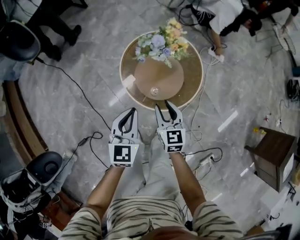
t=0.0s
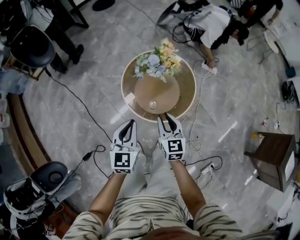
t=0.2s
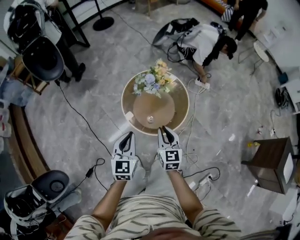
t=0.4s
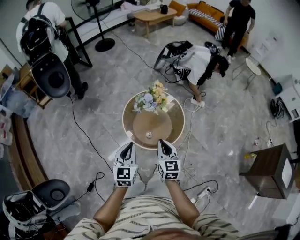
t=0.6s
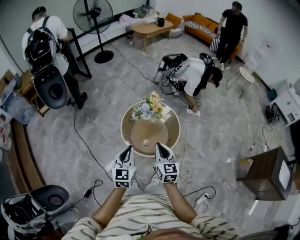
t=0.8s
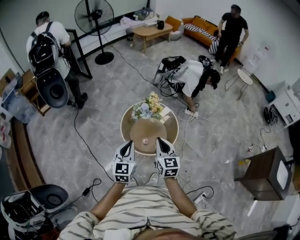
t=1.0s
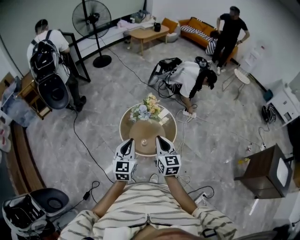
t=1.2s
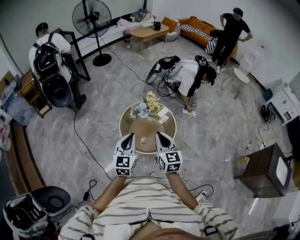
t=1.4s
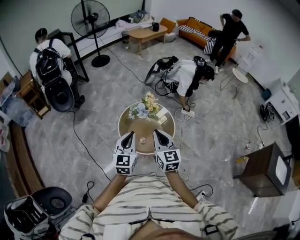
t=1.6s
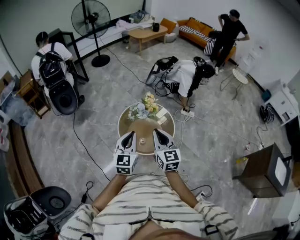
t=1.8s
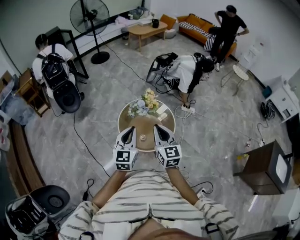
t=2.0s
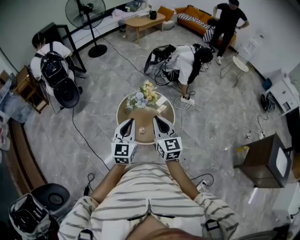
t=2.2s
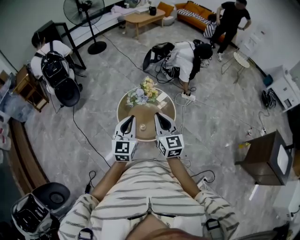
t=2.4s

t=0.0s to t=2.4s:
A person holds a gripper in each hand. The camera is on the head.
t=0.0s to t=1.2s: Both grippers travel together upward, roughly 25 cm. The right gripper closes its fingers.
t=1.2s to t=2.4s: The grippers stay close to where they were, moving slightly.

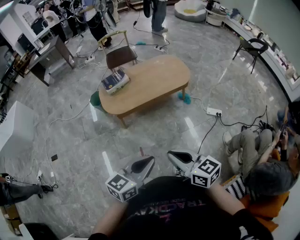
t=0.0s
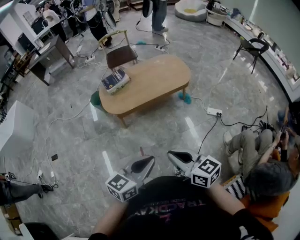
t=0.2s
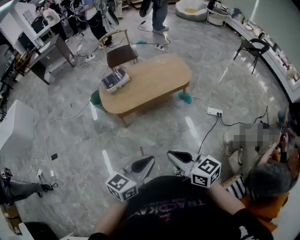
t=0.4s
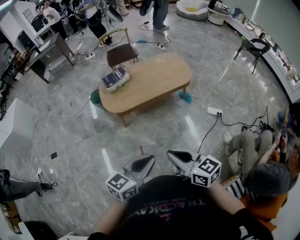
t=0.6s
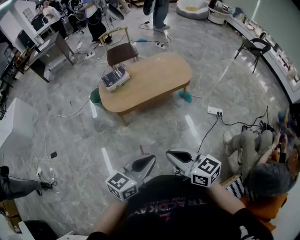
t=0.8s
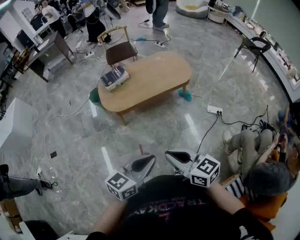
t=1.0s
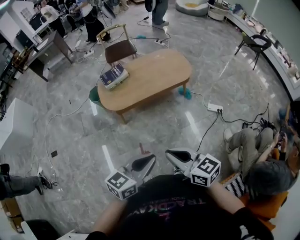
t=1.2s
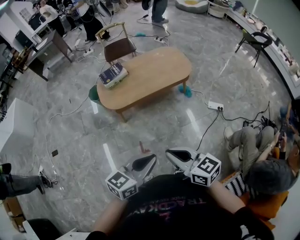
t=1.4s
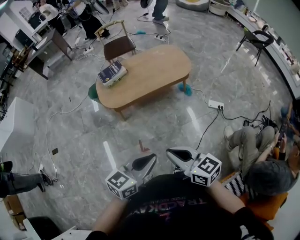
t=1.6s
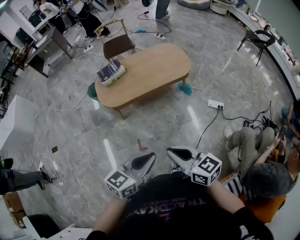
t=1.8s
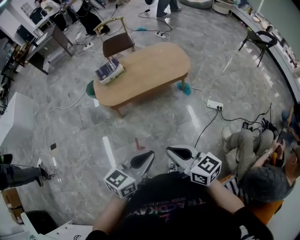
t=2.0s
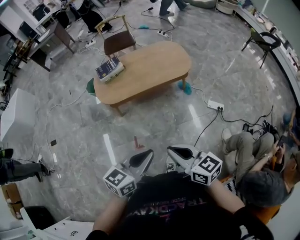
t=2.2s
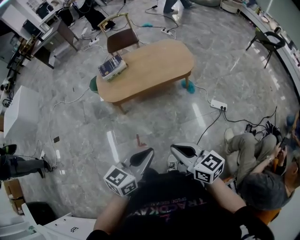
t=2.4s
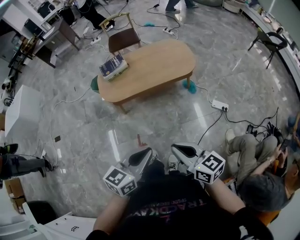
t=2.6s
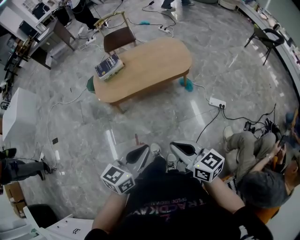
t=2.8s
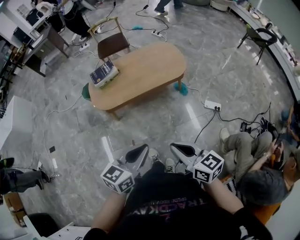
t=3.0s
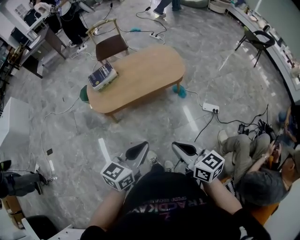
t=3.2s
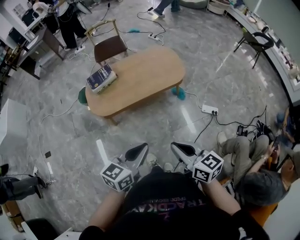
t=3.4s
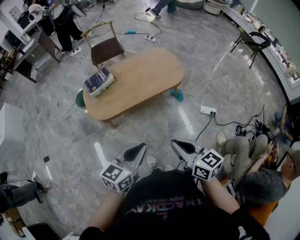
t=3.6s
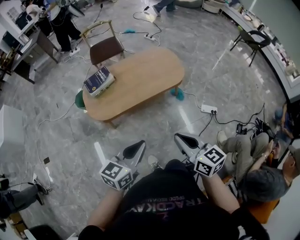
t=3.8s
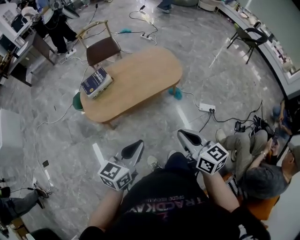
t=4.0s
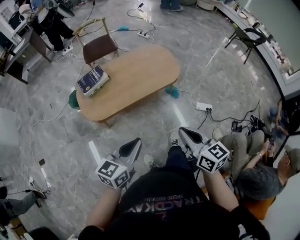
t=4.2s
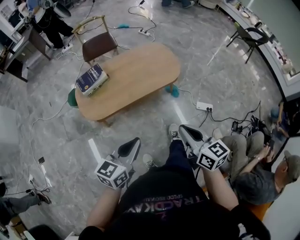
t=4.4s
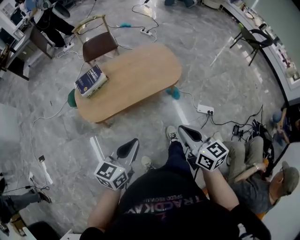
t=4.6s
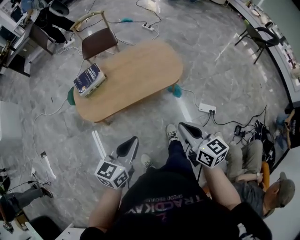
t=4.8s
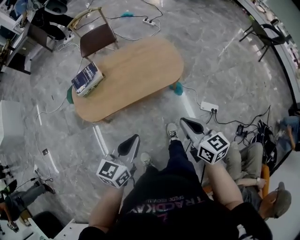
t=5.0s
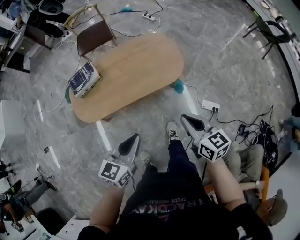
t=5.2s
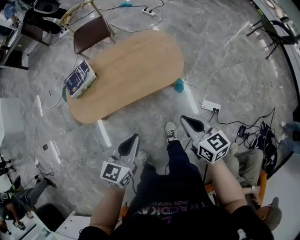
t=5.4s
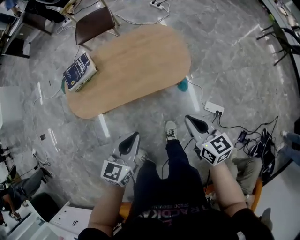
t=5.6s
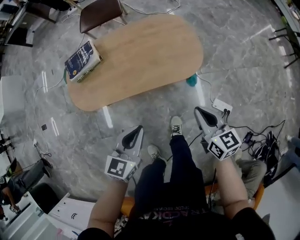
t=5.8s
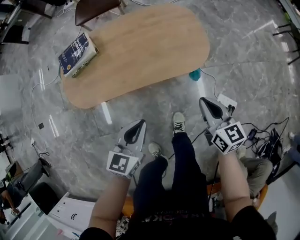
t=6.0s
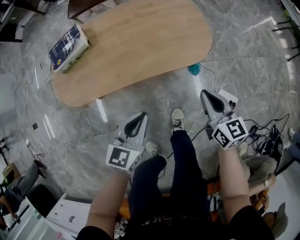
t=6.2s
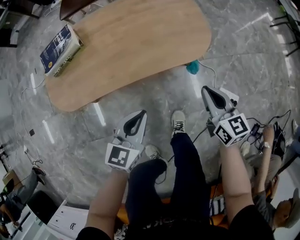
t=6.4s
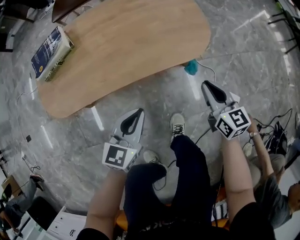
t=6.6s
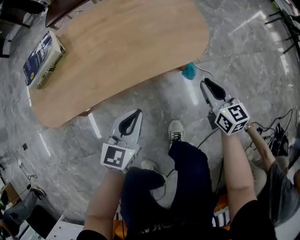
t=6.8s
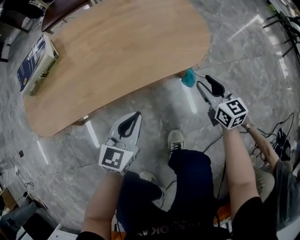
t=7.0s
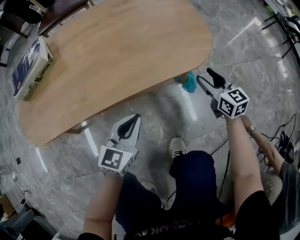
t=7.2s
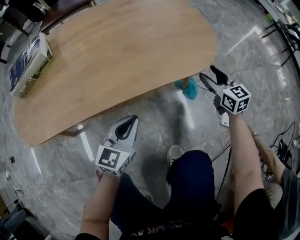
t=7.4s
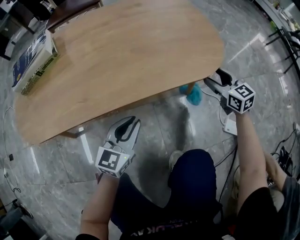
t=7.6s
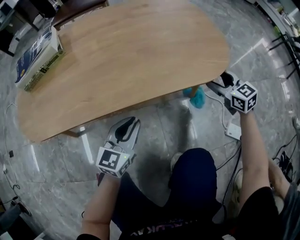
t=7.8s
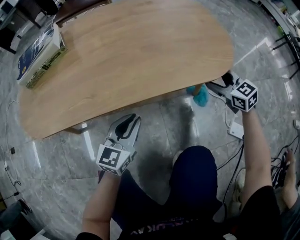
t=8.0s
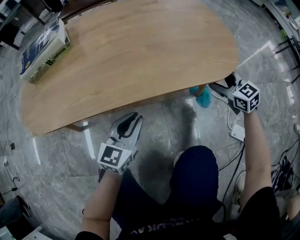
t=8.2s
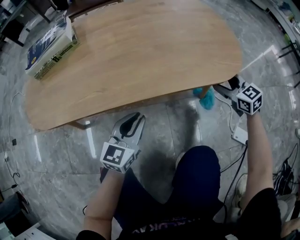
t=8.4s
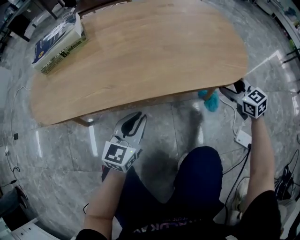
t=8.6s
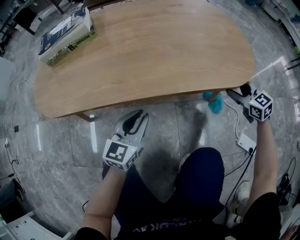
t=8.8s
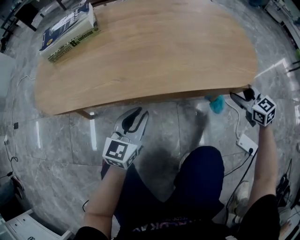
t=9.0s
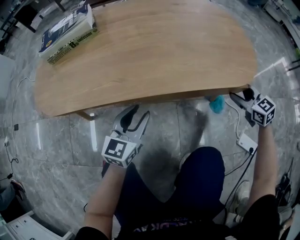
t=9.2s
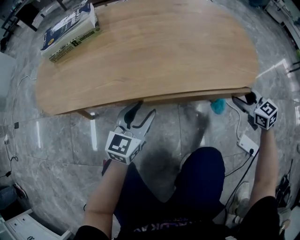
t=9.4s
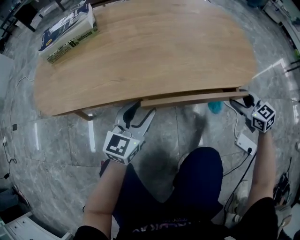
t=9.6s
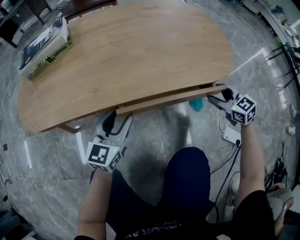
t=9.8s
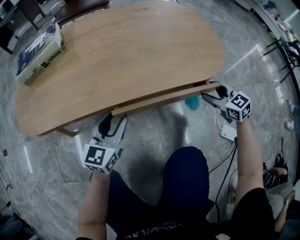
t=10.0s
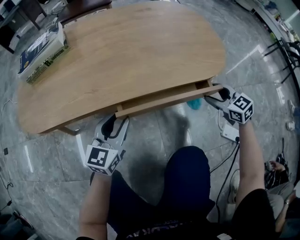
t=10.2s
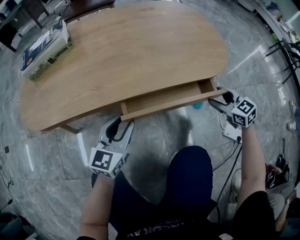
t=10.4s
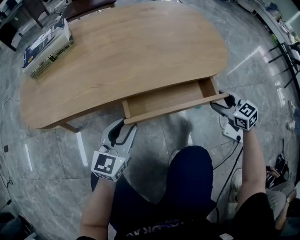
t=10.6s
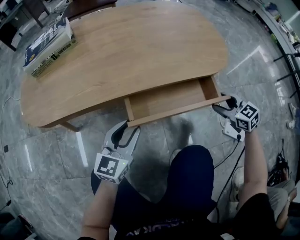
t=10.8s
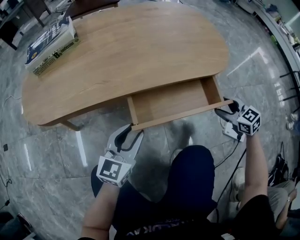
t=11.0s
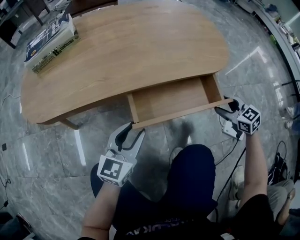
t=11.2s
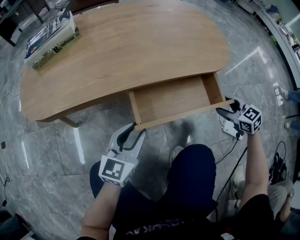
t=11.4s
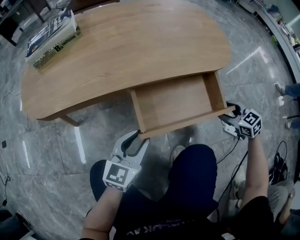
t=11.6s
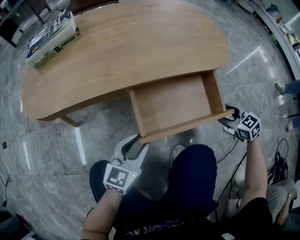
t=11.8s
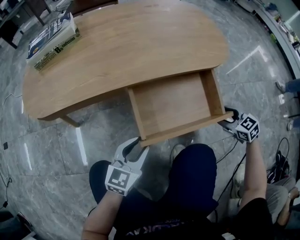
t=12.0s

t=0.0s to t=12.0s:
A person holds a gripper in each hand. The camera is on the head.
t=0.0s to t=1.6s: The left gripper moves roughly 5 cm.
t=1.6s to t=3.0s: The left gripper shifts approximately 10 cm forward and to the right. Meanwhile the right gripper is displaced to the right and forward by approximately 15 cm.
t=3.0s to t=4.4s: The right gripper goes some 15 cm forward, while the left gripper goes some 15 cm forward and to the left.
t=4.4s to t=6.0s: The left gripper is displaced downward, forward and to the right by roughly 35 cm, and swivels roughly 20 degrees, while the right gripper shifts some 40 cm forward, downward and to the right.
t=6.0s to t=7.6s: The left gripper travels downward by roughly 40 cm. Meanwhile the right gripper moves downward and forward, about 40 cm, swivels some 20 degrees, and opens.
t=7.6s to t=9.0s: The left gripper travels to the left by some 10 cm.
t=9.0s to t=10.4s: The right gripper goes roughly 5 cm backward.
t=10.4s to t=12.0s: The two grippers go about 15 cm backward.

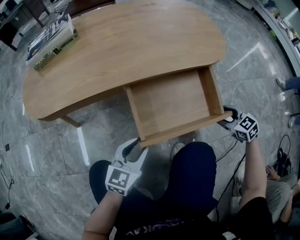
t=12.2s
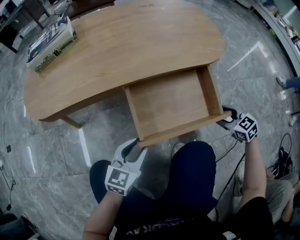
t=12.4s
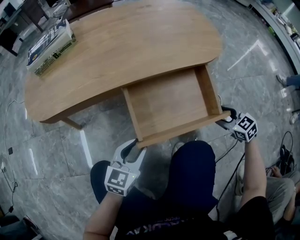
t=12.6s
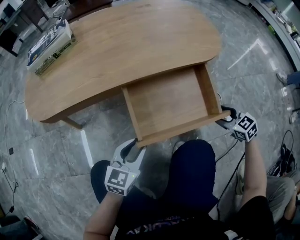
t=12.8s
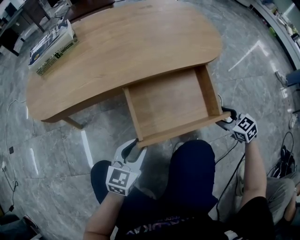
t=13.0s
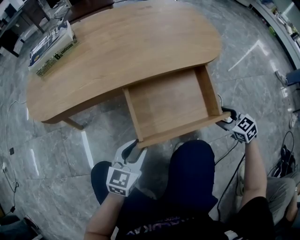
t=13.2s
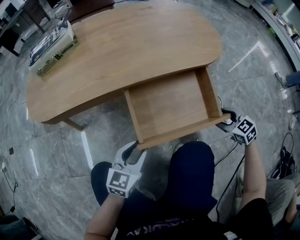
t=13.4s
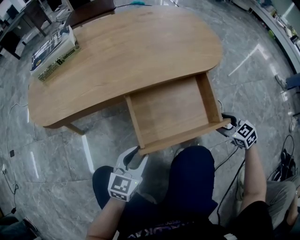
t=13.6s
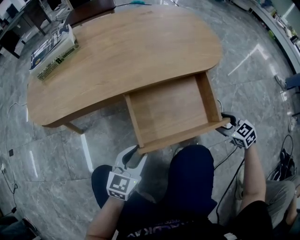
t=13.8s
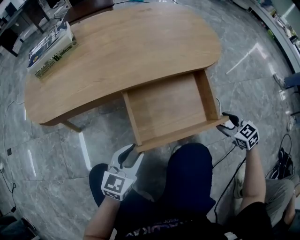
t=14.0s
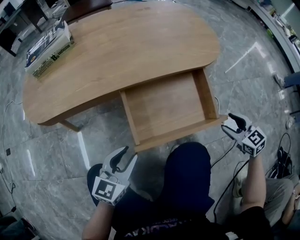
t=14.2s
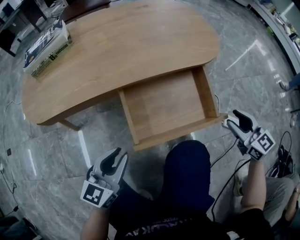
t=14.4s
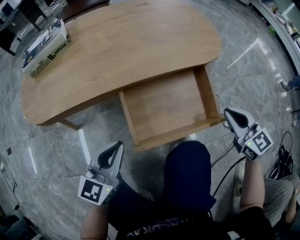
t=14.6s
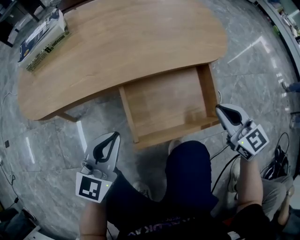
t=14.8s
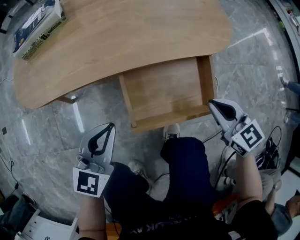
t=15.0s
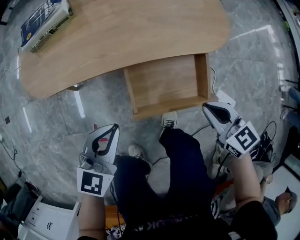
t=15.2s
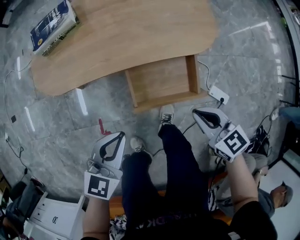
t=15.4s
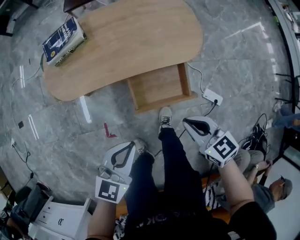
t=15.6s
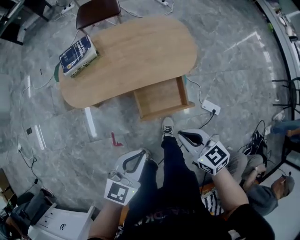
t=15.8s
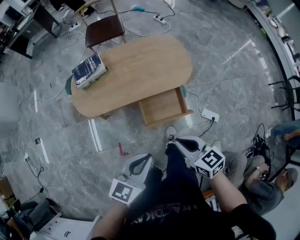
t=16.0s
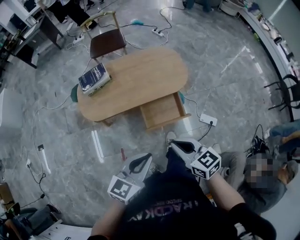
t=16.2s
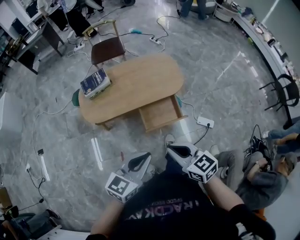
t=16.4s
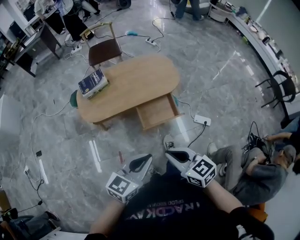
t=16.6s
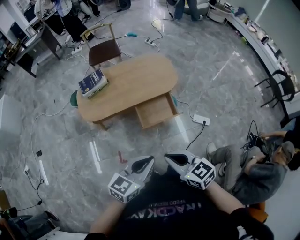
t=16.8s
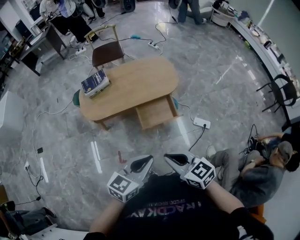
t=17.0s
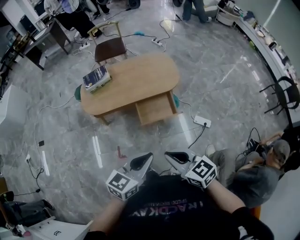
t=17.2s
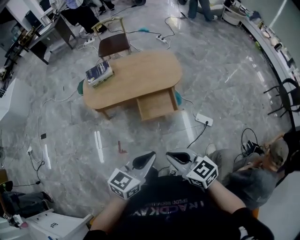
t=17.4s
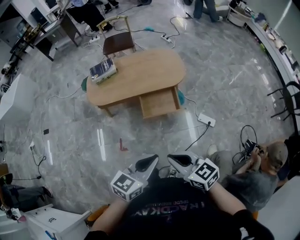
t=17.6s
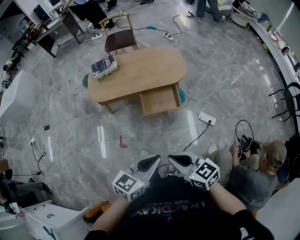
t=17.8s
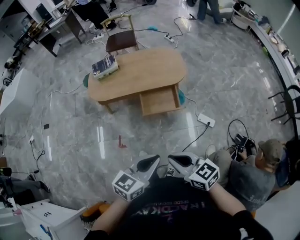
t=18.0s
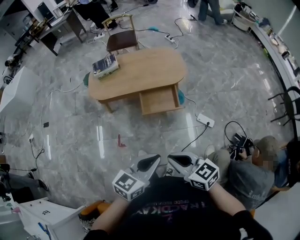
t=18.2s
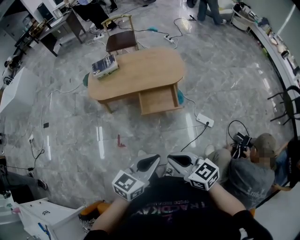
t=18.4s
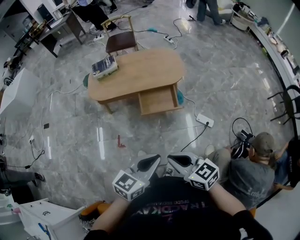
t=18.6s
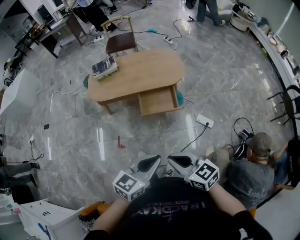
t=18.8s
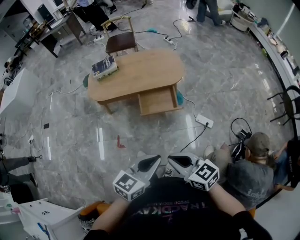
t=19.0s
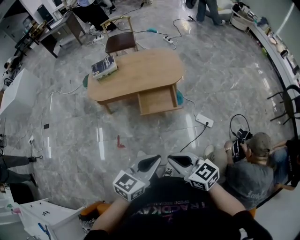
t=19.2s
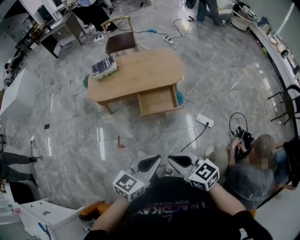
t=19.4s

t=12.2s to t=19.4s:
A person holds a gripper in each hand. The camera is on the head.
t=12.2s to t=13.6s: Neither gripper changes place.
t=13.6s to t=15.0s: The left gripper goes approximately 15 cm upward, and closes up. The right gripper heads upward and to the left, covering some 20 cm, and closes.
t=15.0s to t=16.6s: The grippers both shift upward and backward by some 60 cm. The left gripper changes its angle by about 30 degrees.
t=16.6s to t=18.0s: The two grippers go about 20 cm backward and to the right.
t=18.0s to t=19.4s: The grippers move only a little.

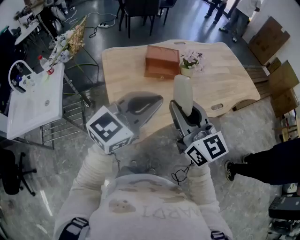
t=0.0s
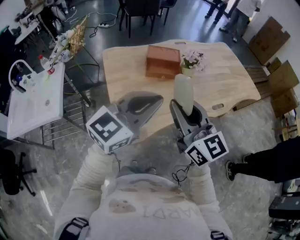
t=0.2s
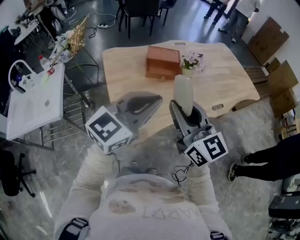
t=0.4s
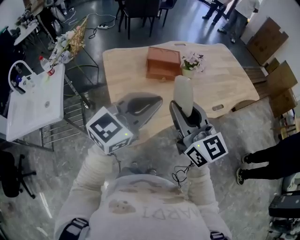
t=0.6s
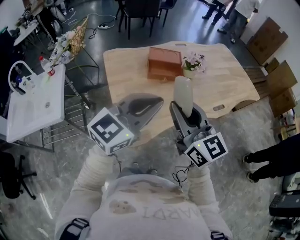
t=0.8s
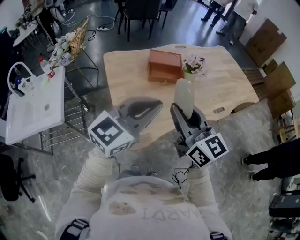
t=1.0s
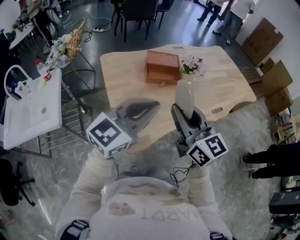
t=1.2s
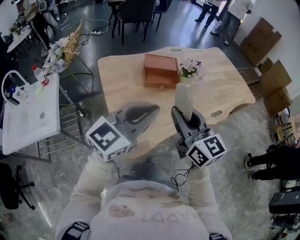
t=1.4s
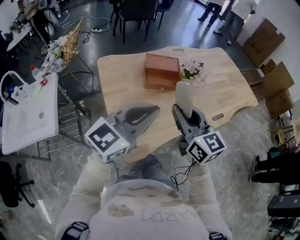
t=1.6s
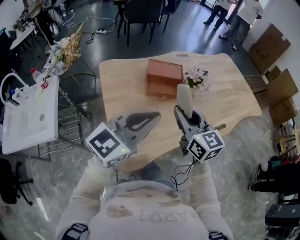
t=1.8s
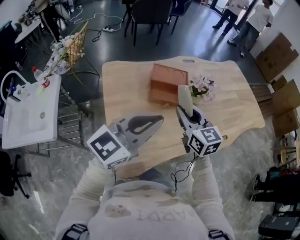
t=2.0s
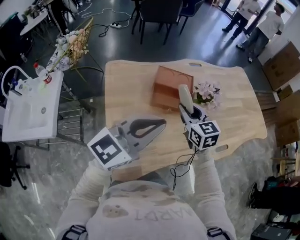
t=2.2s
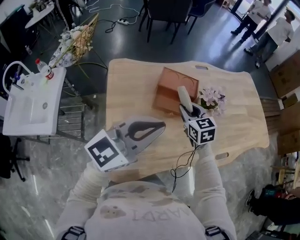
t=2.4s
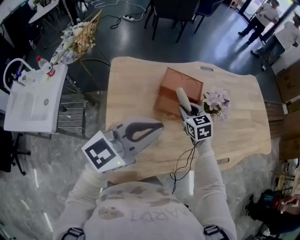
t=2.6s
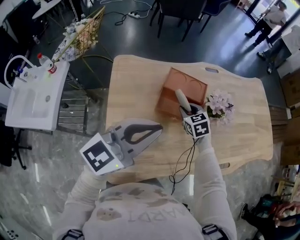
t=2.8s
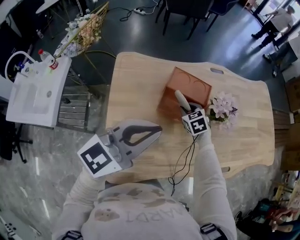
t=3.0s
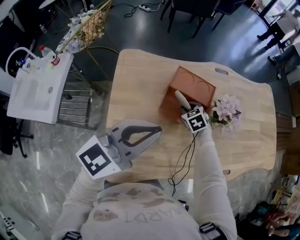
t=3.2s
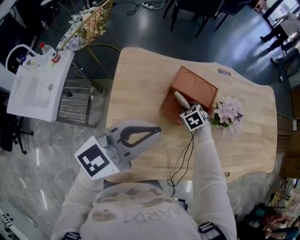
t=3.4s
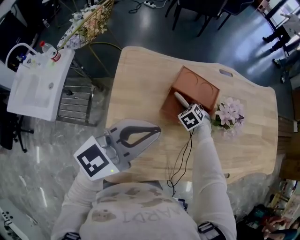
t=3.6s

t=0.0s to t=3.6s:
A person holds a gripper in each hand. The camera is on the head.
t=0.0s to t=1.8s: The right gripper travels forward and downward by about 15 cm, while the left gripper is displaced forward by about 10 cm.
t=1.8s to t=3.6s: The left gripper heads forward, covering roughly 15 cm; the right gripper heads downward and forward, covering approximately 40 cm, and tilts its fingers roughly 60 degrees downward.
